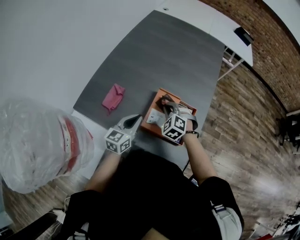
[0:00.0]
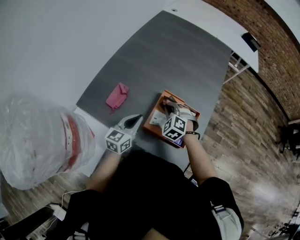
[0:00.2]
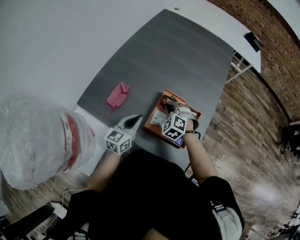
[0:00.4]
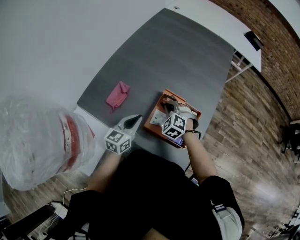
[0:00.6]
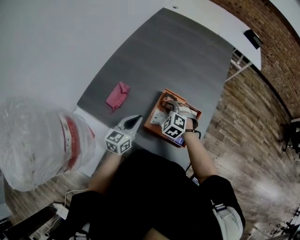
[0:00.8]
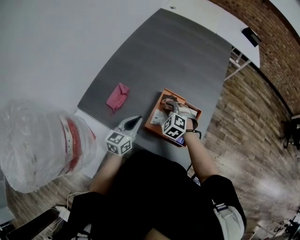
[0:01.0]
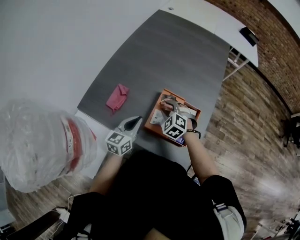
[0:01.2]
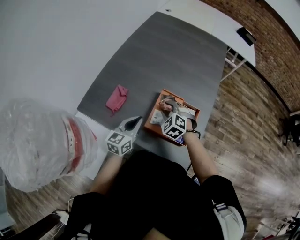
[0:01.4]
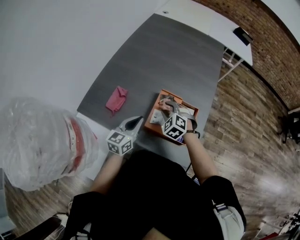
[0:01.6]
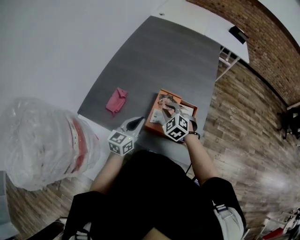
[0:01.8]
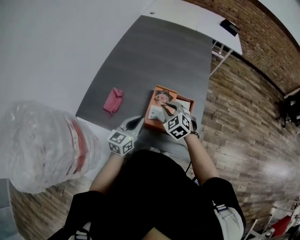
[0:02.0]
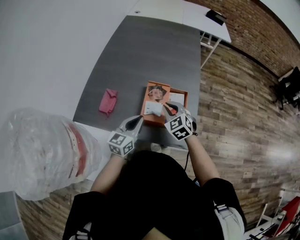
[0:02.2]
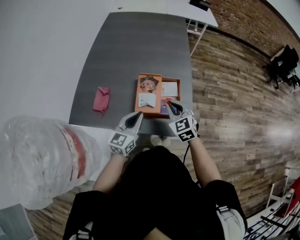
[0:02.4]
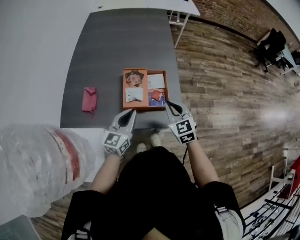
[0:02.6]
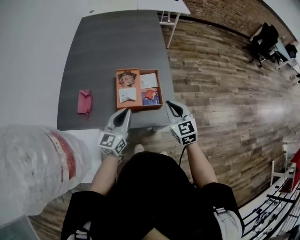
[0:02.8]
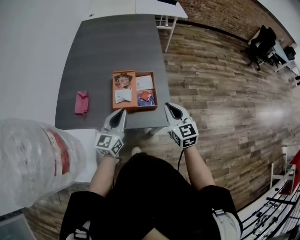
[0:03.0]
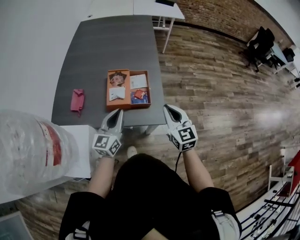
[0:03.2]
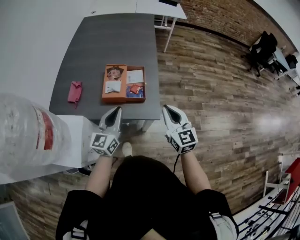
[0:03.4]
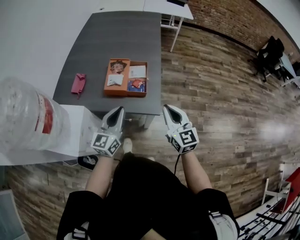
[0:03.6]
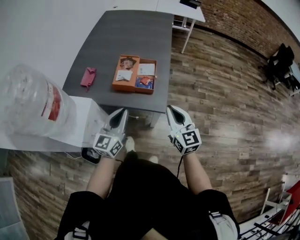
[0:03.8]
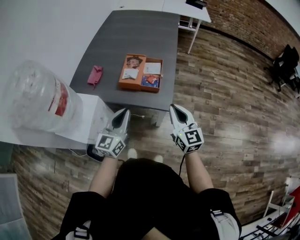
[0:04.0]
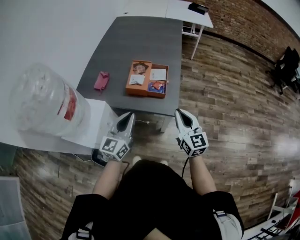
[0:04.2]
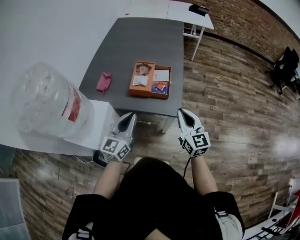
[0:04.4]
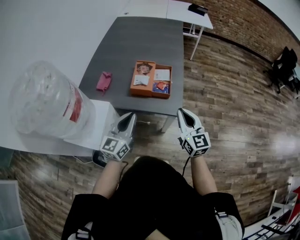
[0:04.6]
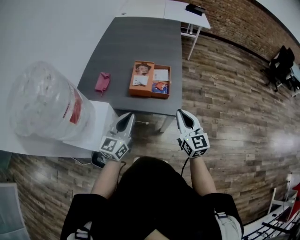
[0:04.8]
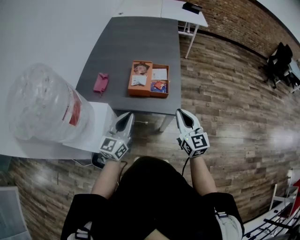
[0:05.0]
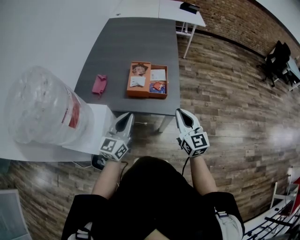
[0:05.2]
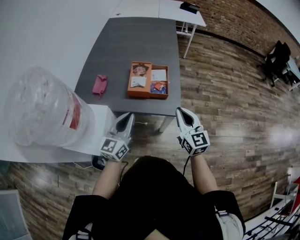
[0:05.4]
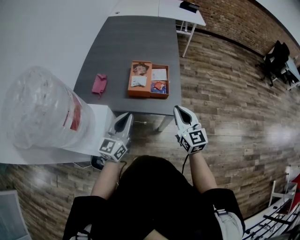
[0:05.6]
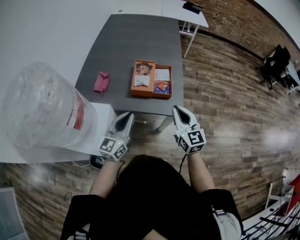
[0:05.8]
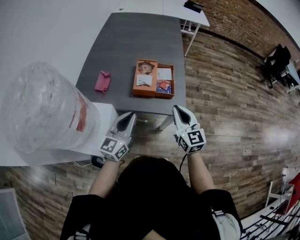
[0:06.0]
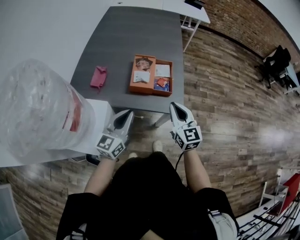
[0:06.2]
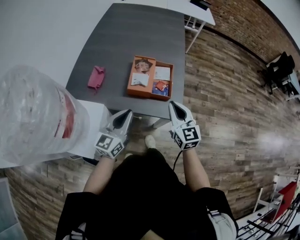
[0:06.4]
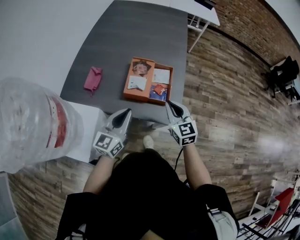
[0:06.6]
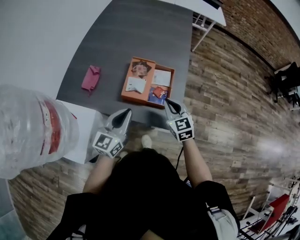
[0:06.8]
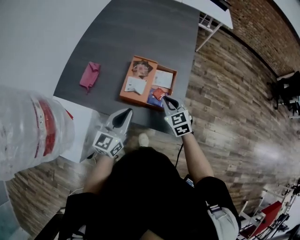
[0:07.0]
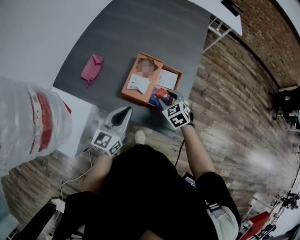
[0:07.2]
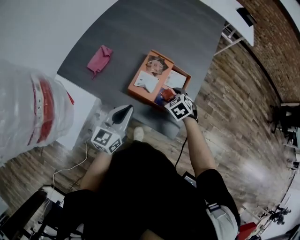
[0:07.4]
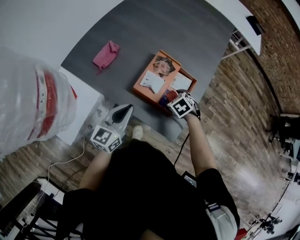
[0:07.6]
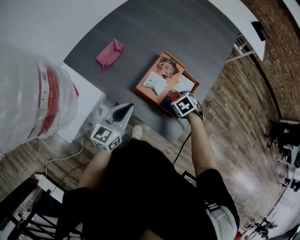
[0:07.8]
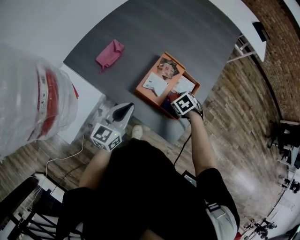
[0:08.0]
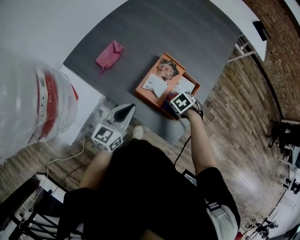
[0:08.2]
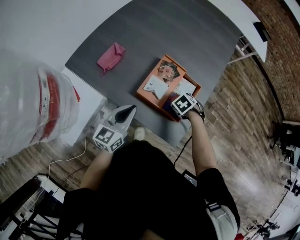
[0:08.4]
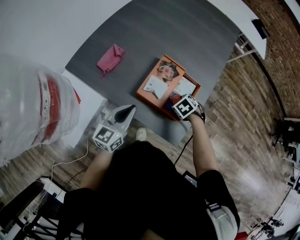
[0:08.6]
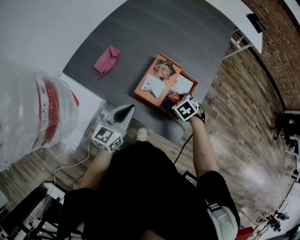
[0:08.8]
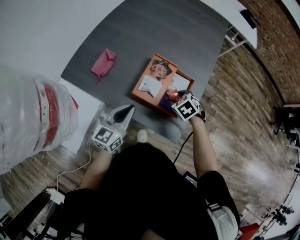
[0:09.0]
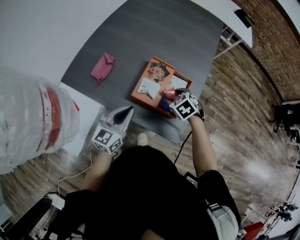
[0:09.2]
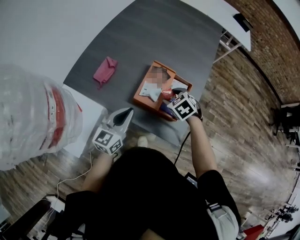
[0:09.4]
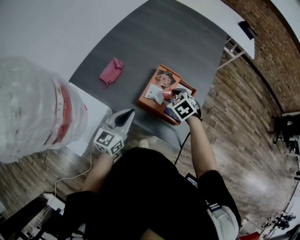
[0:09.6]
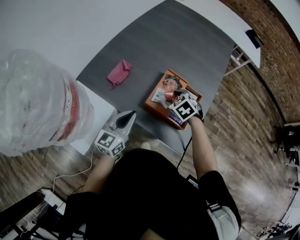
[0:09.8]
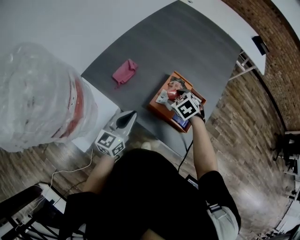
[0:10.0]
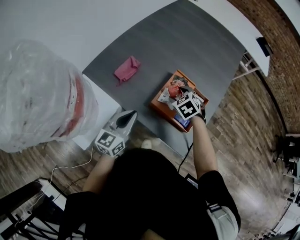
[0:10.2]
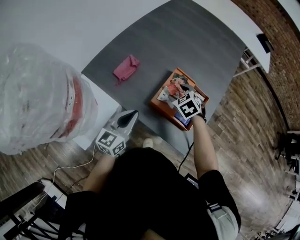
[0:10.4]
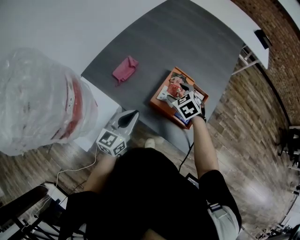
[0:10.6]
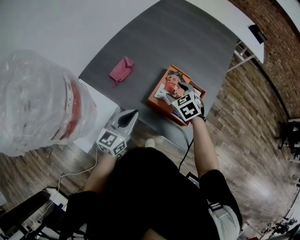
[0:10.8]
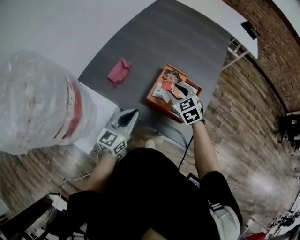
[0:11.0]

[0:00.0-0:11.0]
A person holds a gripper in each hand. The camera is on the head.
0:00.0 to 0:01.6: The right gripper opens its fingers.
0:01.6 to 0:03.2: The right gripper heads to the right, backward and upward, covering some 30 cm, points its fingers roughly 30 degrees further upward, and closes up. The left gripper shifts some 15 cm to the right, backward and upward.
0:03.2 to 0:04.8: The two grippers go roughly 10 cm backward.
0:04.8 to 0:06.2: The right gripper travels to the left by approximately 5 cm.
0:06.2 to 0:07.8: The left gripper changes place by some 10 cm, and changes its angle by approximately 30 degrees, while the right gripper moves downward, about 25 cm, tips its fingers downward by some 70 degrees, and opens.
0:07.8 to 0:09.4: The right gripper goes about 10 cm upward.
0:09.4 to 0:11.0: The right gripper is displaced upward and to the left by roughly 10 cm, and rotates approximately 20 degrees.

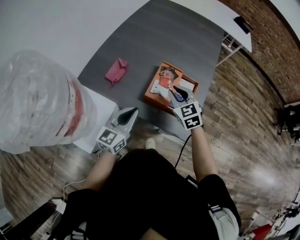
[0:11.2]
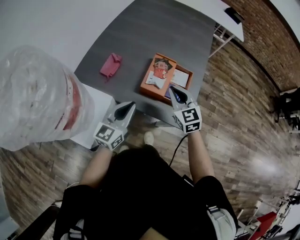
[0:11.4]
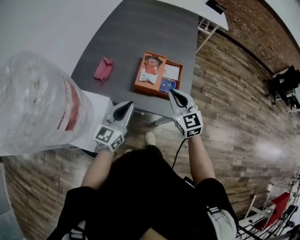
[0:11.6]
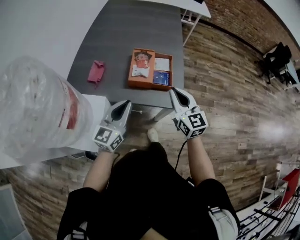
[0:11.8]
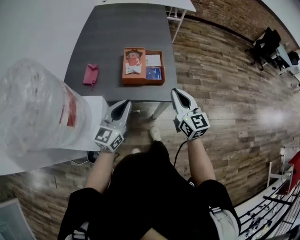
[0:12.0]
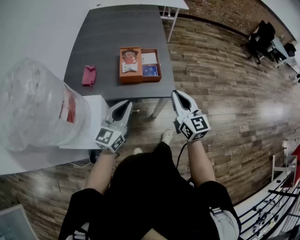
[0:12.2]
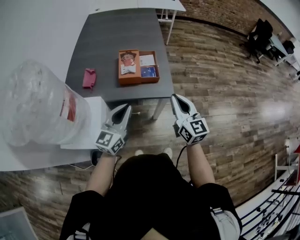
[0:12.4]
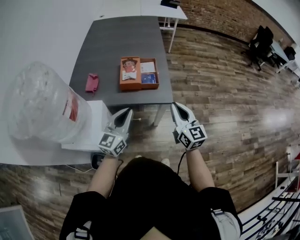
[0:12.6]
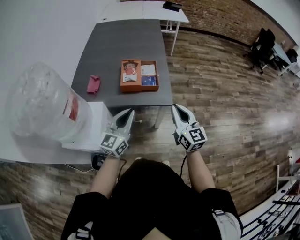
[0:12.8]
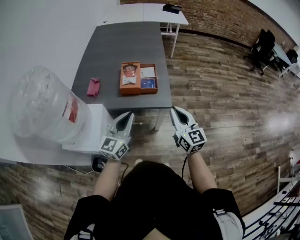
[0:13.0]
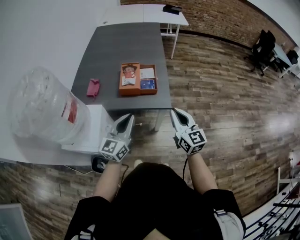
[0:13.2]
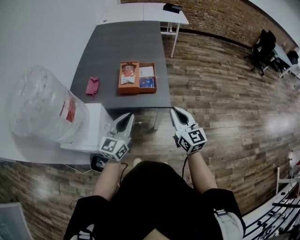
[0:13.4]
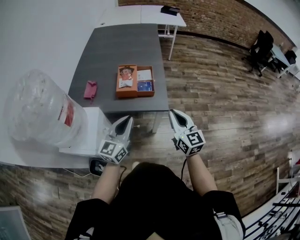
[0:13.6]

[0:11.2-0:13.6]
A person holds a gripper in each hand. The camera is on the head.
0:11.2 to 0:12.4: The right gripper shifts some 30 cm backward and to the right, and tilts its fingers some 30 degrees upward. Meanwhile the left gripper shifts some 15 cm backward, upward and to the right, and turns by some 20 degrees.
0:12.4 to 0:13.6: The grippers stay close to where they were, moving slightly.

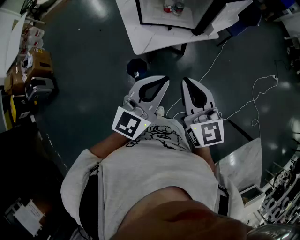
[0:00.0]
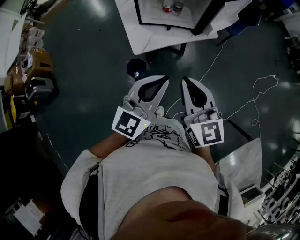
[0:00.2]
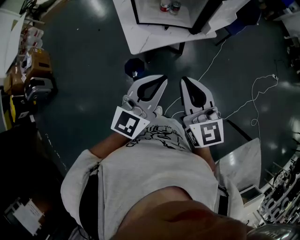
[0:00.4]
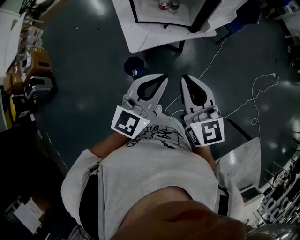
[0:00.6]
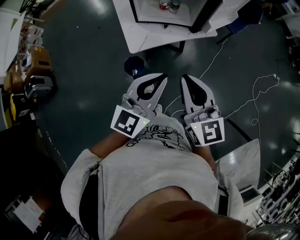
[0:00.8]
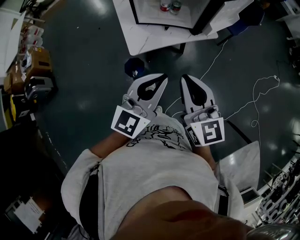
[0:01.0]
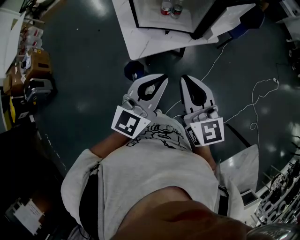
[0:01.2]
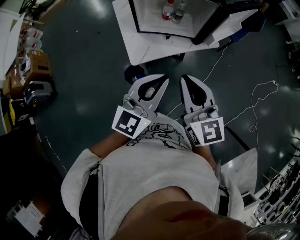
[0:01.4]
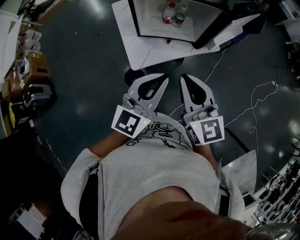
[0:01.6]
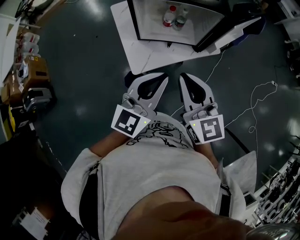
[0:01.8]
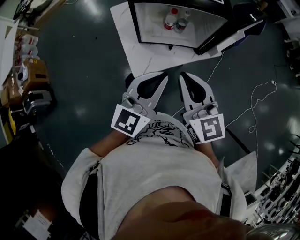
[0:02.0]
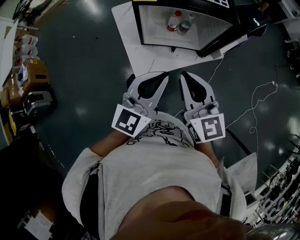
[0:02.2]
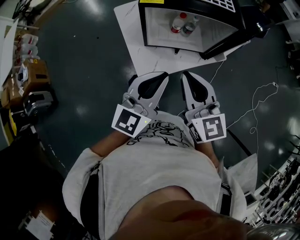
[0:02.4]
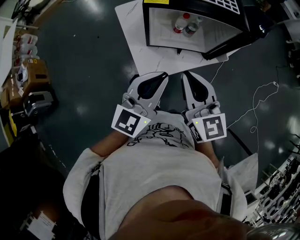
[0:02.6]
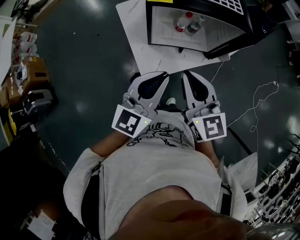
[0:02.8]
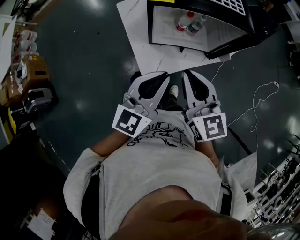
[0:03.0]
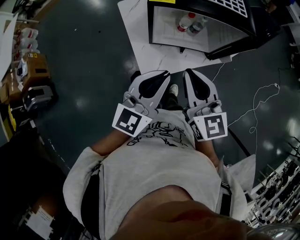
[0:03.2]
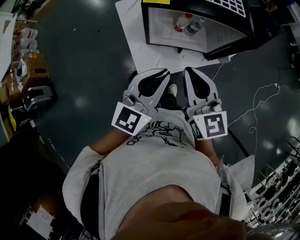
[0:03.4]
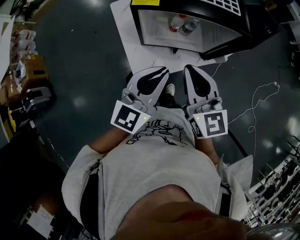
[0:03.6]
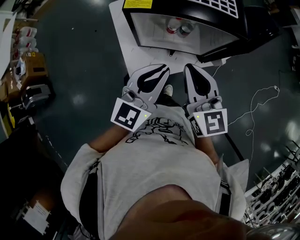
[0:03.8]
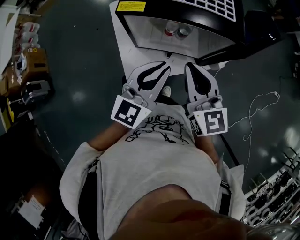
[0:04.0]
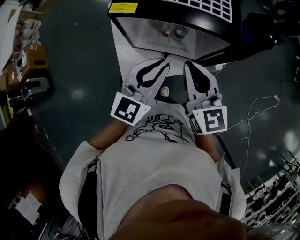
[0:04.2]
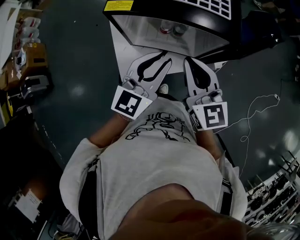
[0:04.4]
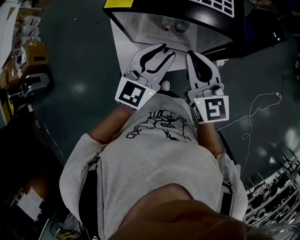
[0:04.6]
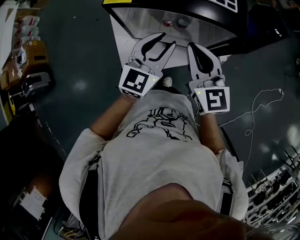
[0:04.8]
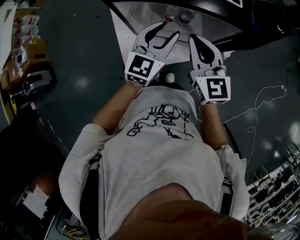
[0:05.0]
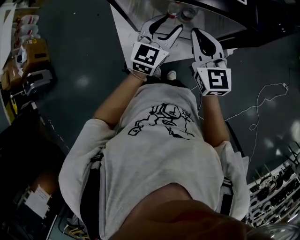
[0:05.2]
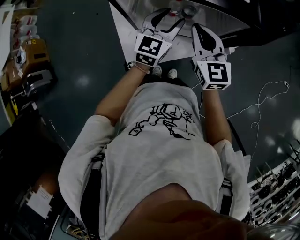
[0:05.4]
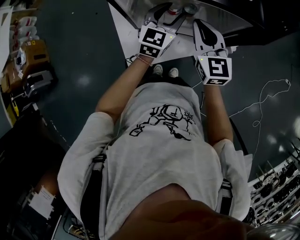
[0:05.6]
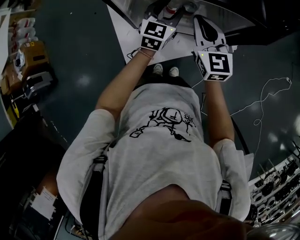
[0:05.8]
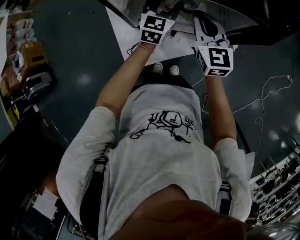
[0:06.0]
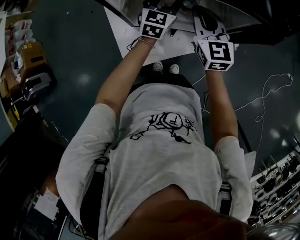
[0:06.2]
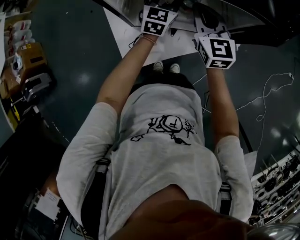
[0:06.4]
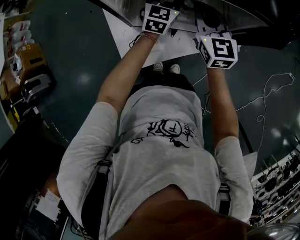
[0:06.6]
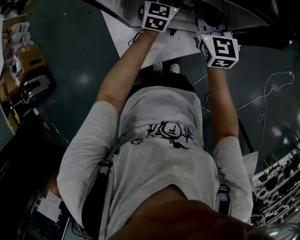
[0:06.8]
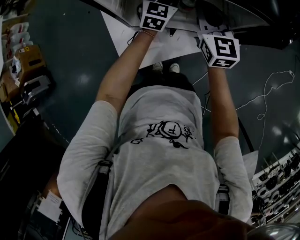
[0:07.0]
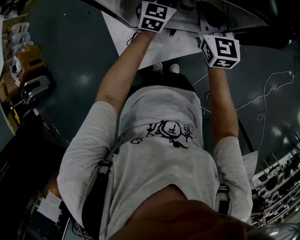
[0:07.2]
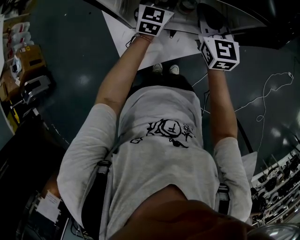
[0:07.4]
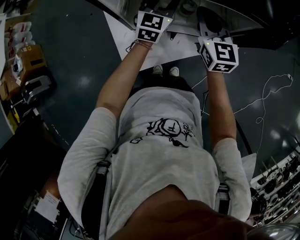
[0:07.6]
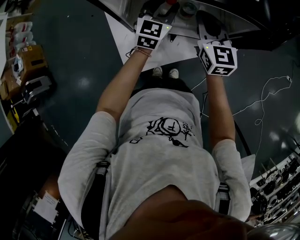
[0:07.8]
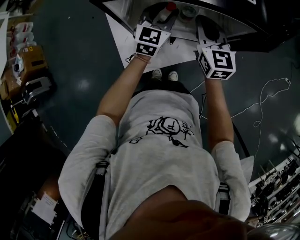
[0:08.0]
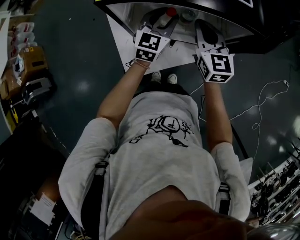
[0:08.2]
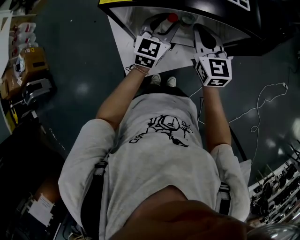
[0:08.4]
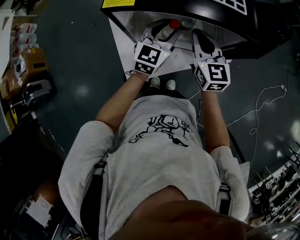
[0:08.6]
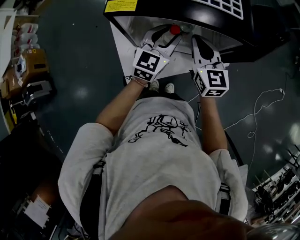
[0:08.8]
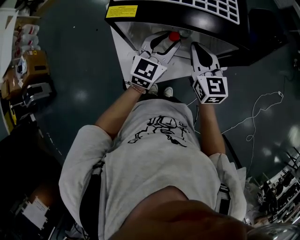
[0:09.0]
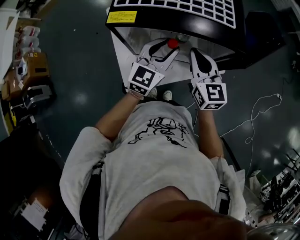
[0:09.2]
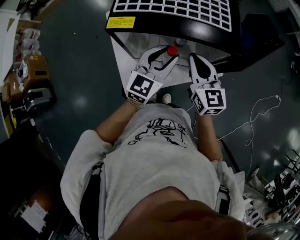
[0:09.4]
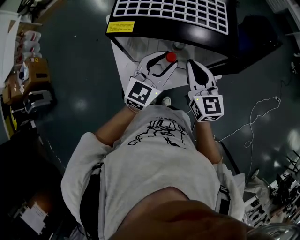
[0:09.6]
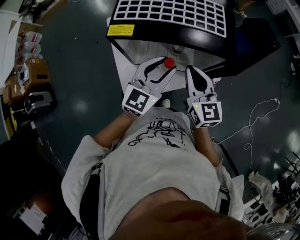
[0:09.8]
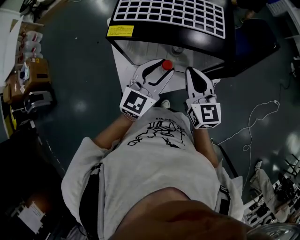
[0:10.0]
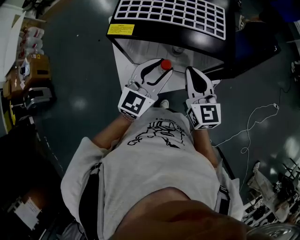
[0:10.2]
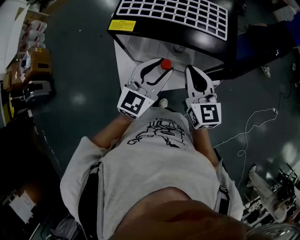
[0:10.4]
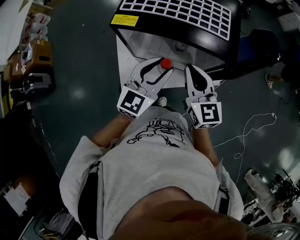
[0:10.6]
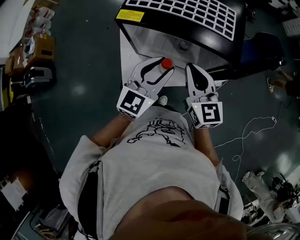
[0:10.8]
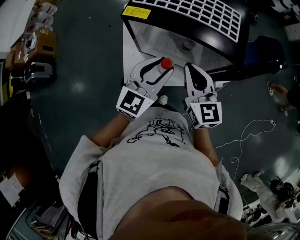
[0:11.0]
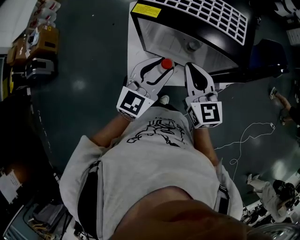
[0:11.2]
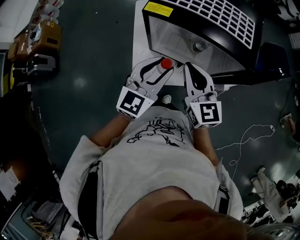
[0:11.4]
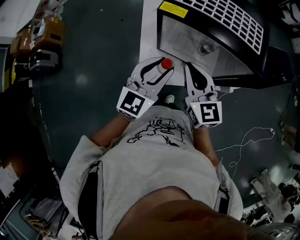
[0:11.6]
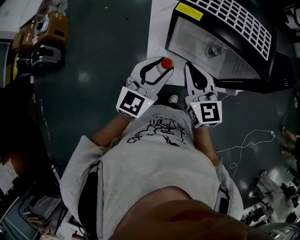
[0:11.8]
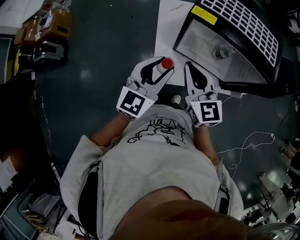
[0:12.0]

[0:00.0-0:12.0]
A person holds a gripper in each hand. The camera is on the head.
0:00.0 to 0:01.6: The grippers both shift forward by some 15 cm.
0:01.6 to 0:03.0: Both grippers move forward and to the left, some 15 cm.
0:03.0 to 0:04.4: The right gripper moves to the right and forward, approximately 15 cm. Meanwhile the left gripper is displaced forward and to the right by about 20 cm.
0:04.4 to 0:06.0: The right gripper is displaced downward and forward by approximately 20 cm, while the left gripper heads forward and downward, covering roughly 25 cm, and opens up.
0:07.6 to 0:09.0: The left gripper is displaced backward and upward by some 15 cm. The right gripper is displaced upward and backward by some 10 cm.
0:09.0 to 0:10.4: The left gripper is displaced upward and backward by some 10 cm. Meanwhile the right gripper travels upward by approximately 5 cm.
0:10.4 to 0:12.0: Both grippers travel together to the left, roughly 20 cm.
